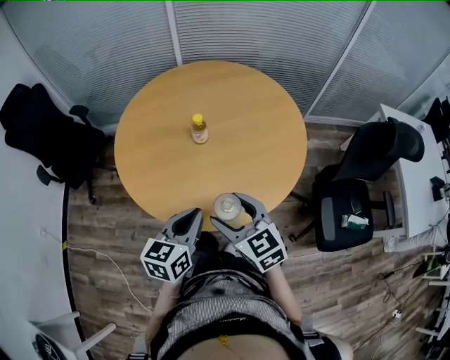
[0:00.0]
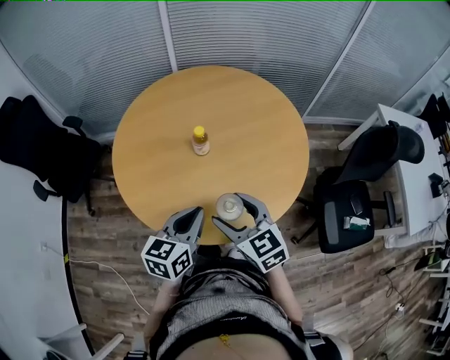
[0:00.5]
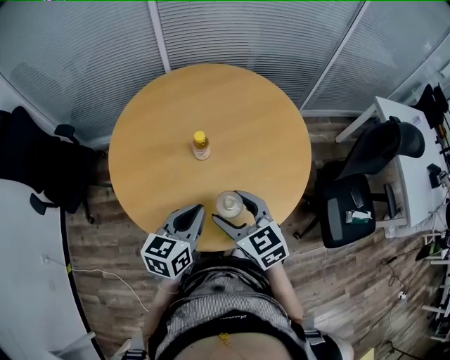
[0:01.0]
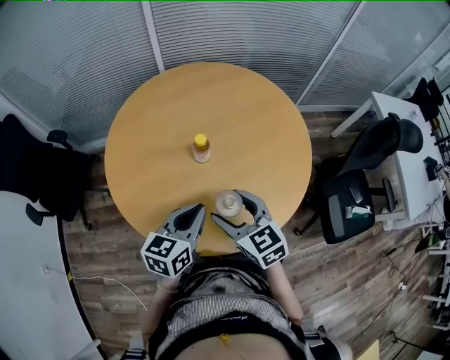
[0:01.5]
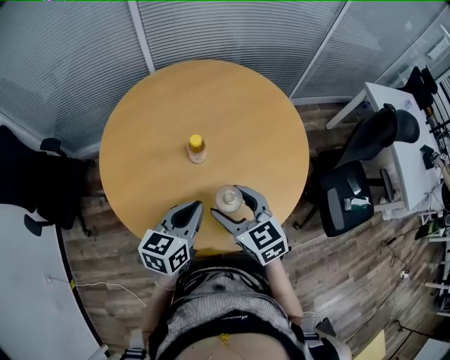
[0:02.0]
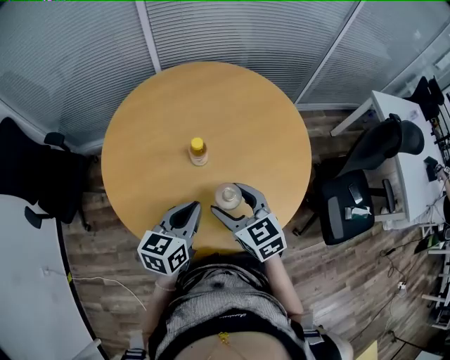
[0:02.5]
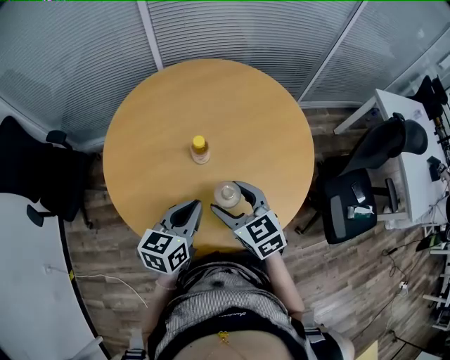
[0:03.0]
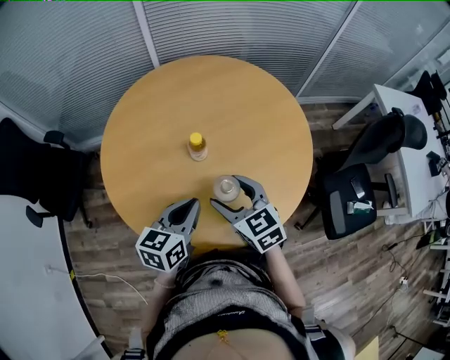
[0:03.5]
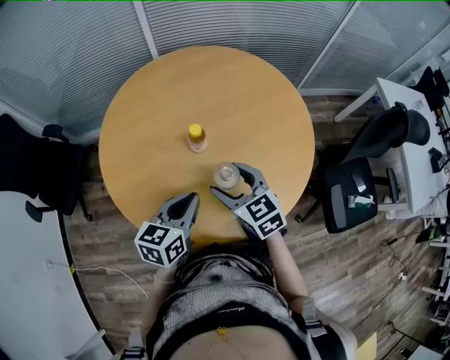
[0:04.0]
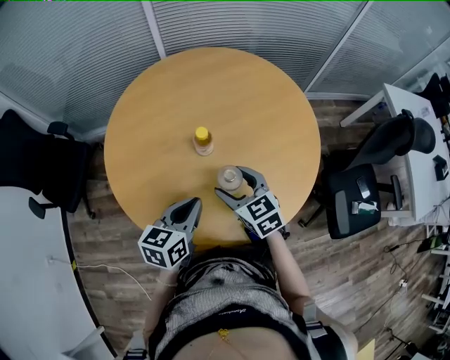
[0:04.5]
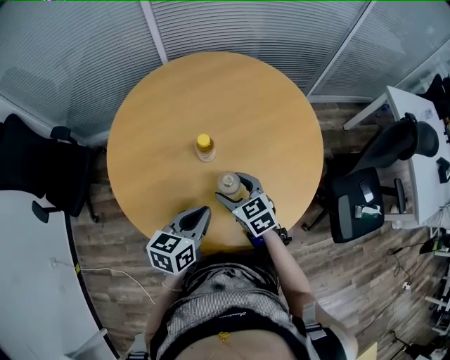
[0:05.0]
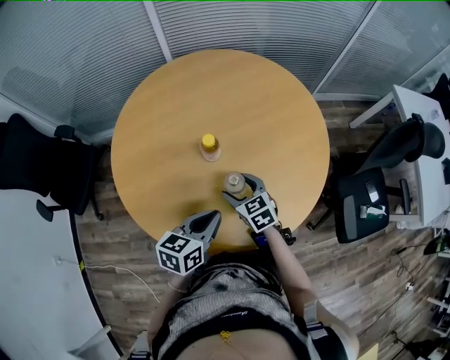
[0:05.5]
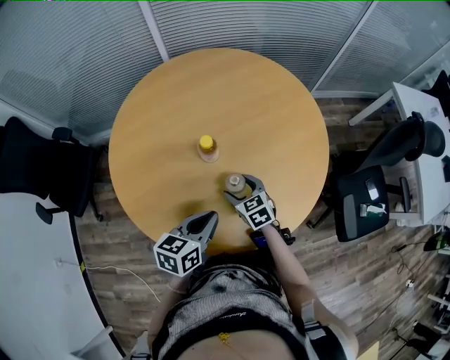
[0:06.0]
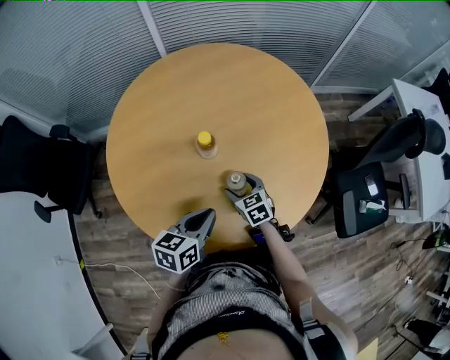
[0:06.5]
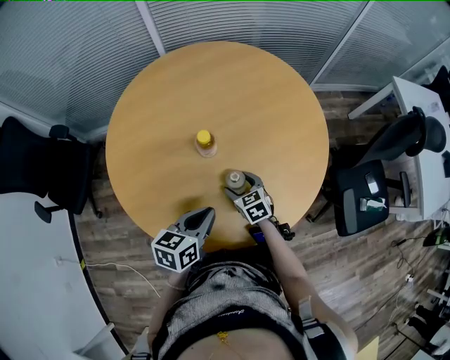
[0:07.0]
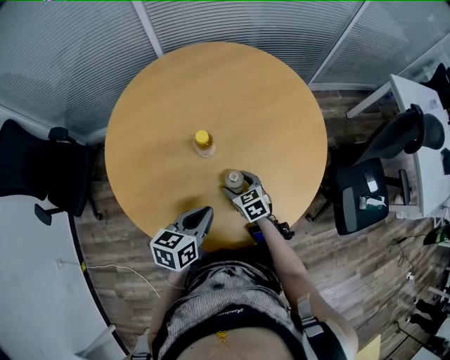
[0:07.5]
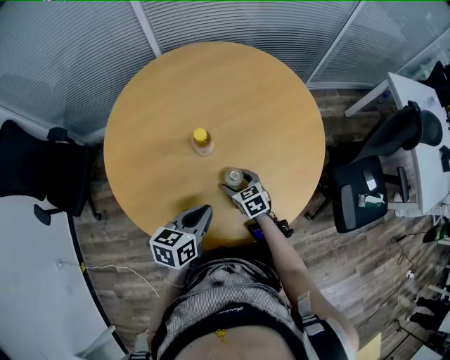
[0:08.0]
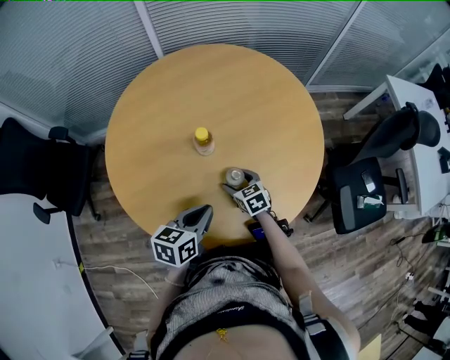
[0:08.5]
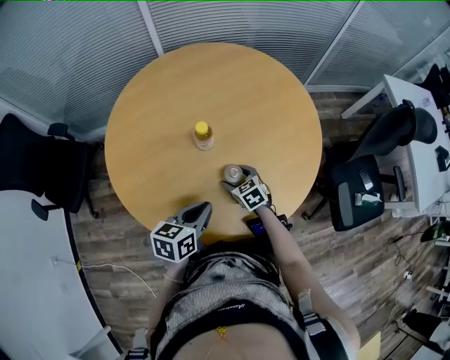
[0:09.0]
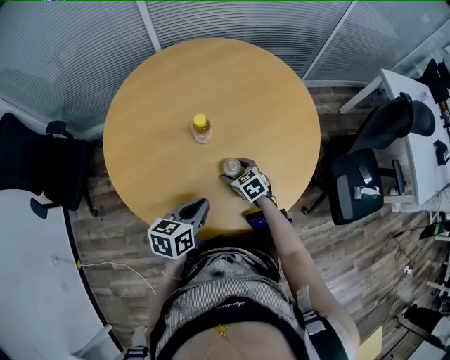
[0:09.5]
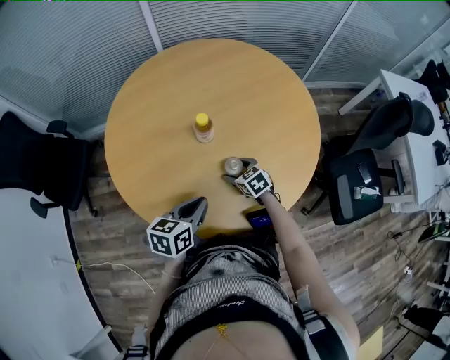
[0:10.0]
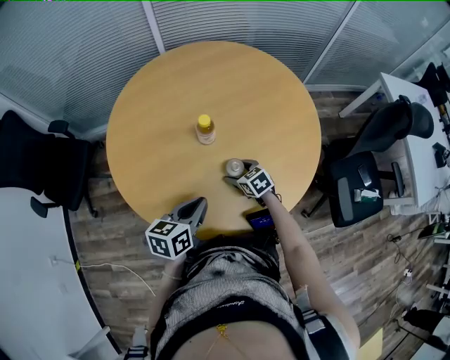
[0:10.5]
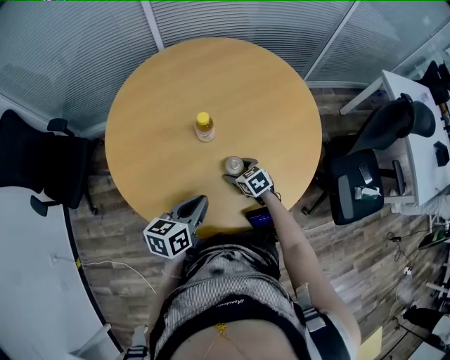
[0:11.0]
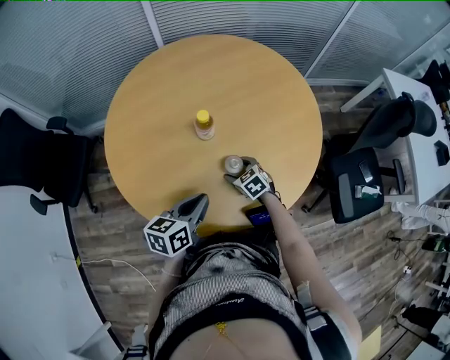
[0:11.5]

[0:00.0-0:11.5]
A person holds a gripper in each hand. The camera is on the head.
0:00.0 to 0:02.0: The right gripper is displaced forward and to the left by some 15 cm. The left gripper moves forward, some 15 cm.
0:02.0 to 0:04.0: The right gripper shifts by approximately 5 cm.
0:04.0 to 0:06.0: The right gripper moves downward, approximately 15 cm.
0:06.0 to 0:09.5: There are only small adjustments of the grippers.
0:09.5 to 0:11.5: The grippers make only small movements.

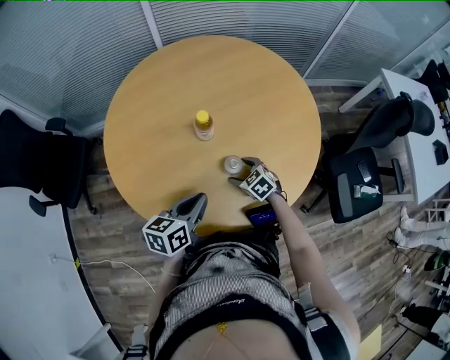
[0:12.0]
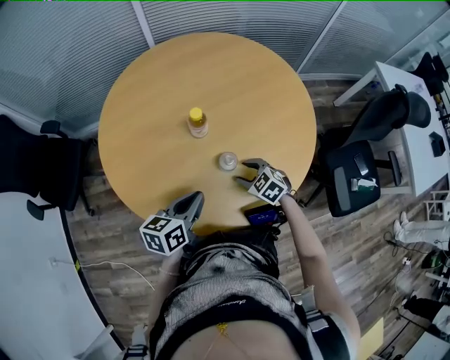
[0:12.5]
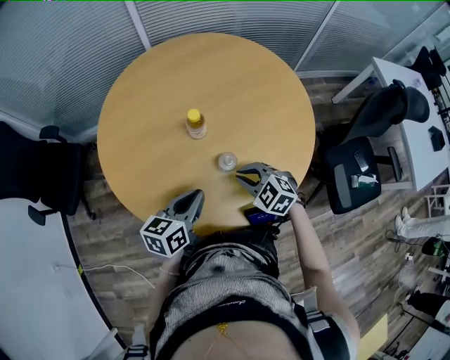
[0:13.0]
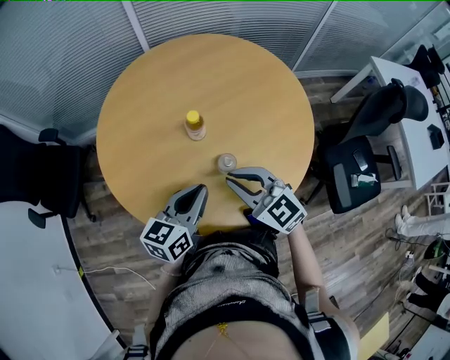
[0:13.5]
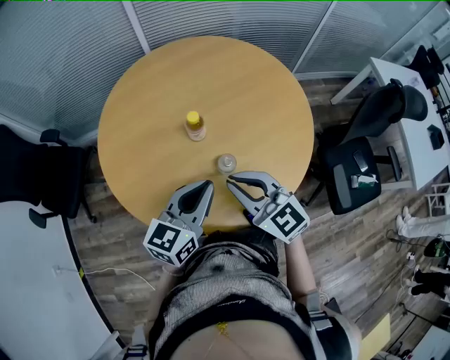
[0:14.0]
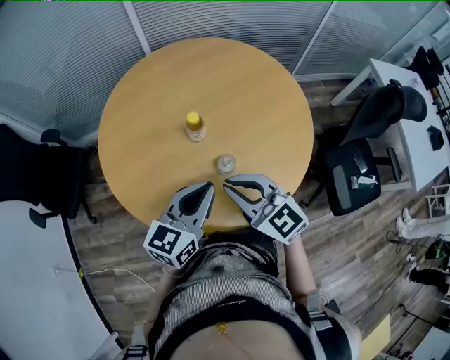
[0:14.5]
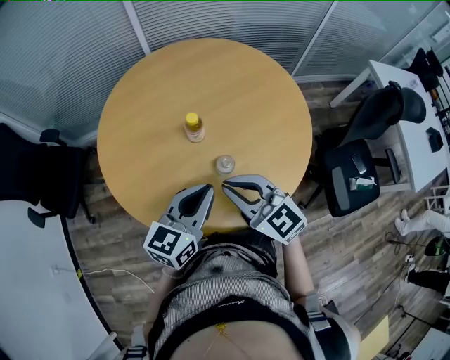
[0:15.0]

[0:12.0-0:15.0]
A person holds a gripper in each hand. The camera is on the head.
0:12.0 to 0:13.5: The right gripper heads upward, covering roughly 25 cm, tips its fingers upward by some 30 degrees, and closes its fingers, while the left gripper moves upward, some 5 cm.
0:13.5 to 0:15.0: The left gripper ends up approximately 5 cm from where it was.

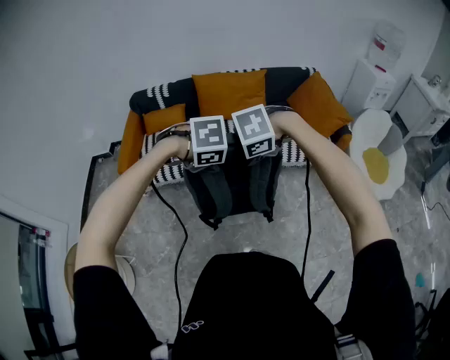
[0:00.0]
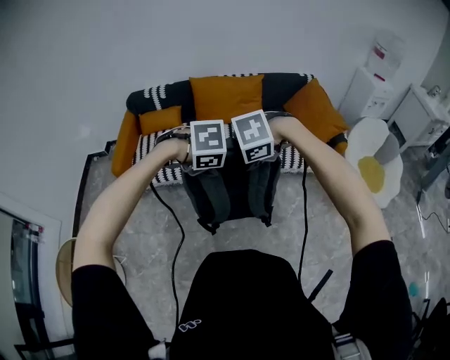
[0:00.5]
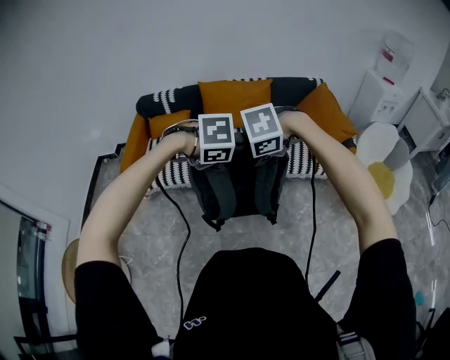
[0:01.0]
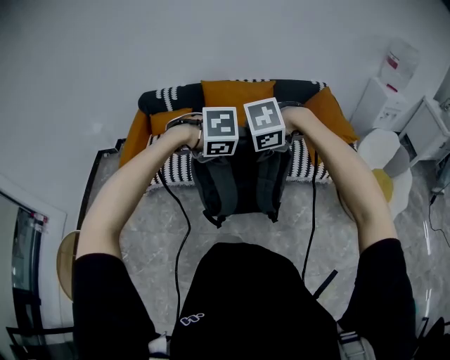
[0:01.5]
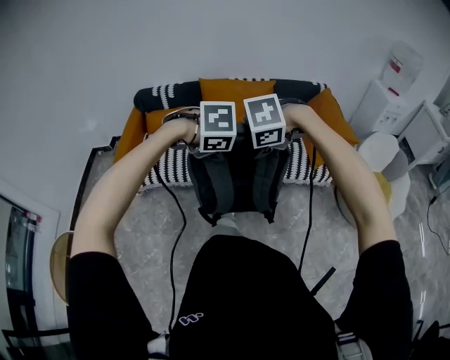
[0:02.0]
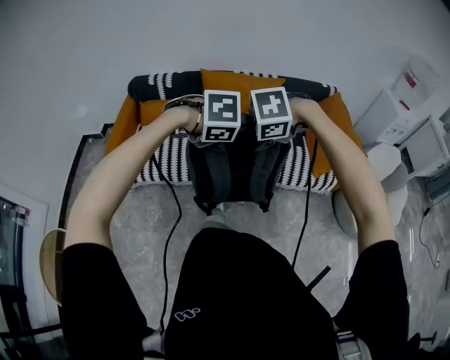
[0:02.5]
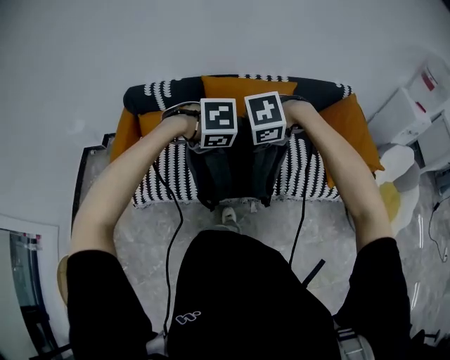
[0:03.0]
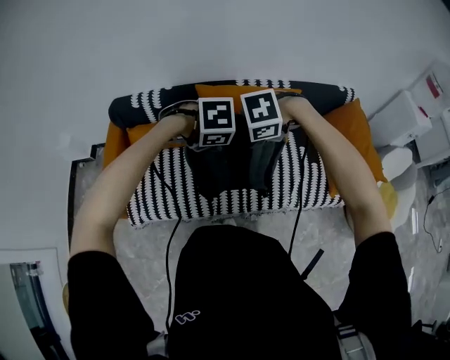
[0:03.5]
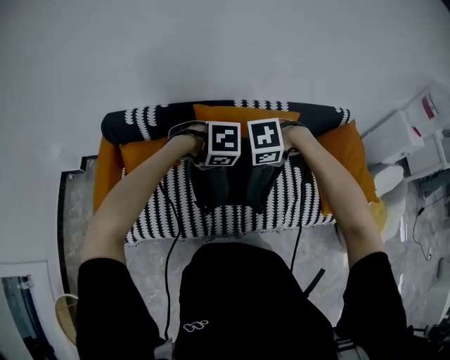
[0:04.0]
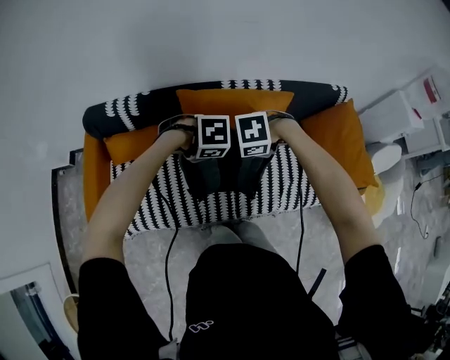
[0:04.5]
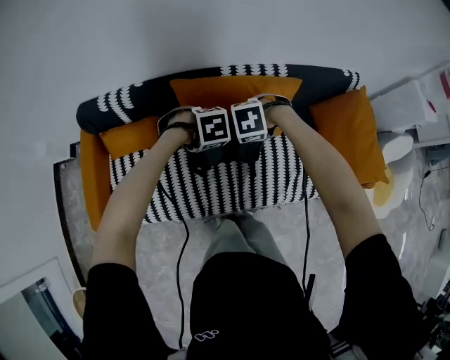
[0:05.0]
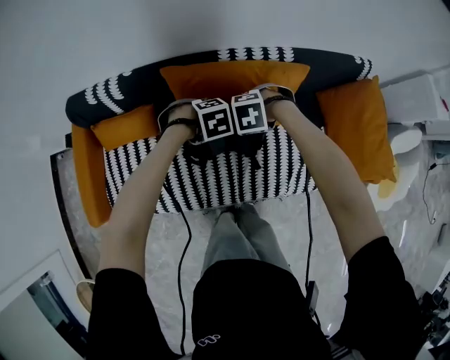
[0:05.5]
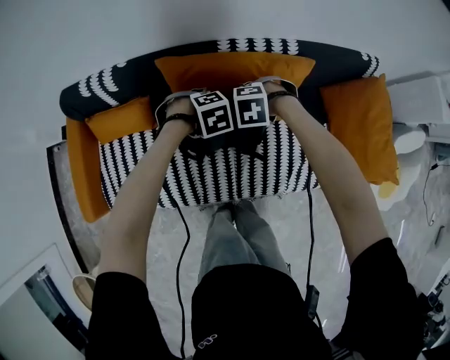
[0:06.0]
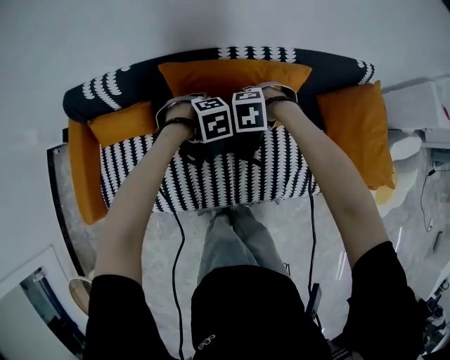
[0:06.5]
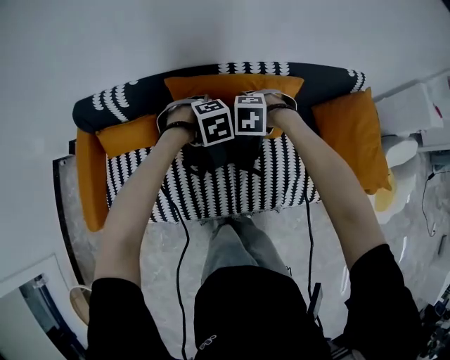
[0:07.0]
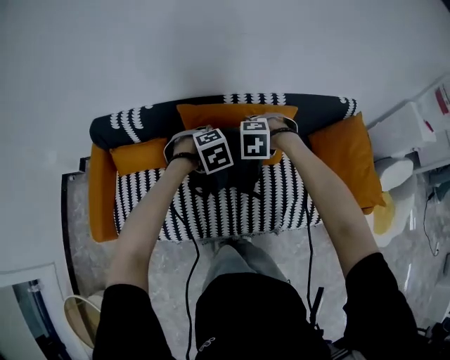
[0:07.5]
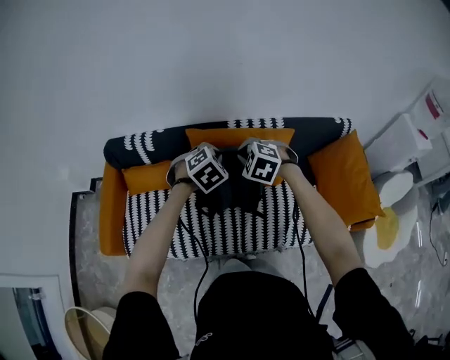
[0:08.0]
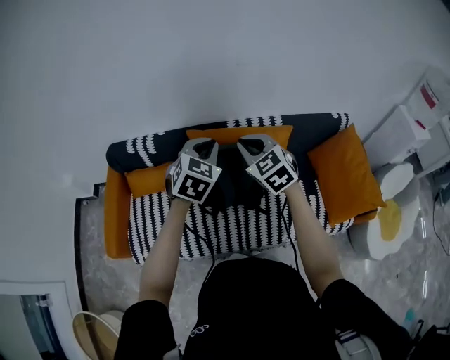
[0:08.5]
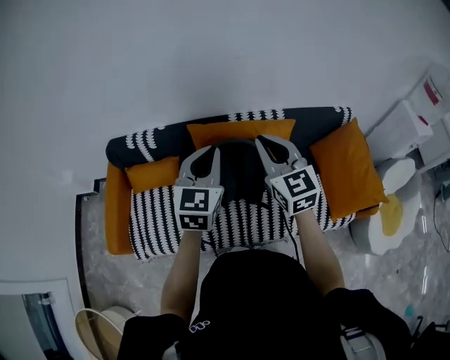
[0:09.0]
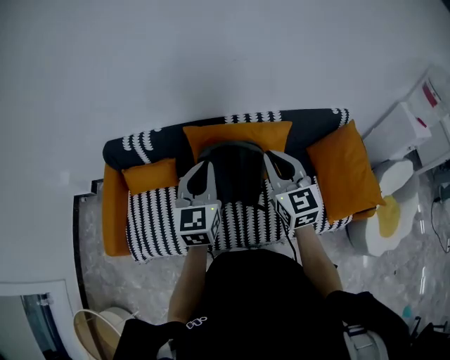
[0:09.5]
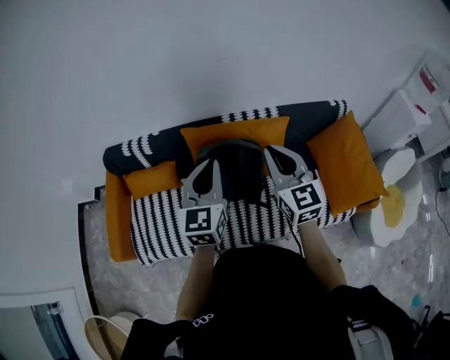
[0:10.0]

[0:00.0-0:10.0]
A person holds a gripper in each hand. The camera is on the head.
0:00.0 to 0:02.0: The left gripper moves roughly 10 cm. Meanwhile the right gripper ends up roughly 10 cm from where it was.
0:02.0 to 0:04.0: The pair of grippers is taken about 50 cm.
0:04.0 to 0:06.0: Both grippers move downward, approximately 20 cm.
0:06.0 to 0:08.0: The two grippers go about 20 cm upward. The right gripper swivels some 30 degrees, and closes up, while the left gripper changes its angle by approximately 40 degrees, and closes.
0:08.0 to 0:10.0: The left gripper shifts about 15 cm upward and backward, and tips its fingers upward by approximately 50 degrees. Meanwhile the right gripper is displaced upward, to the right and backward by about 20 cm, and tilts its fingers roughly 50 degrees upward.

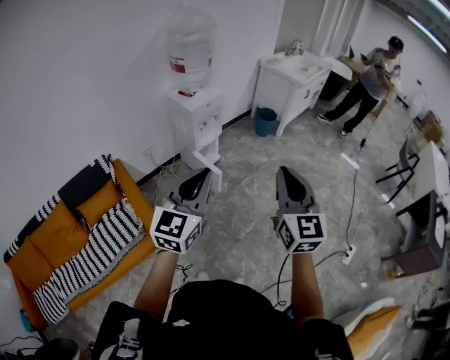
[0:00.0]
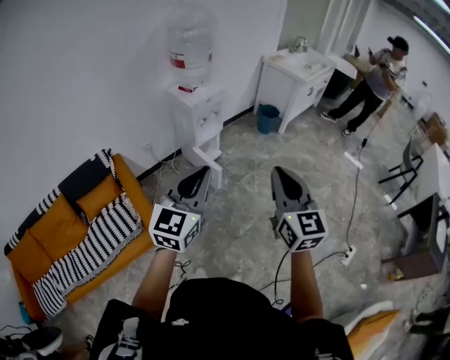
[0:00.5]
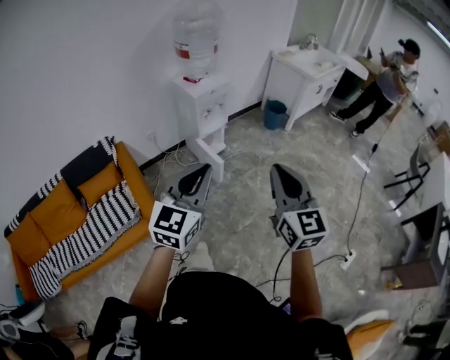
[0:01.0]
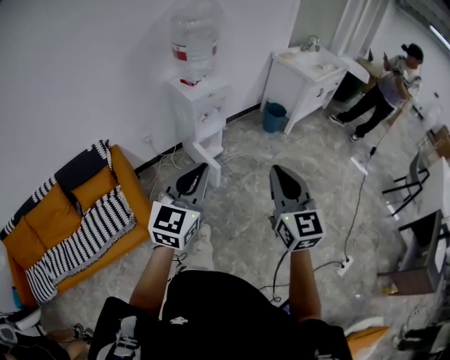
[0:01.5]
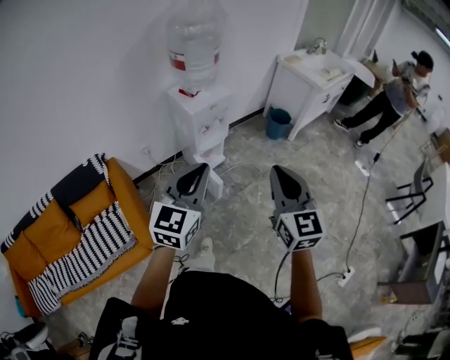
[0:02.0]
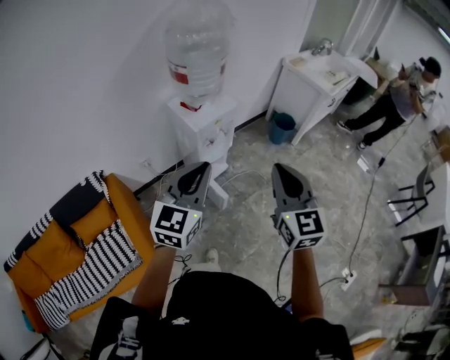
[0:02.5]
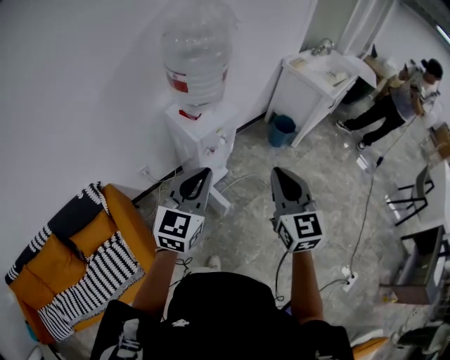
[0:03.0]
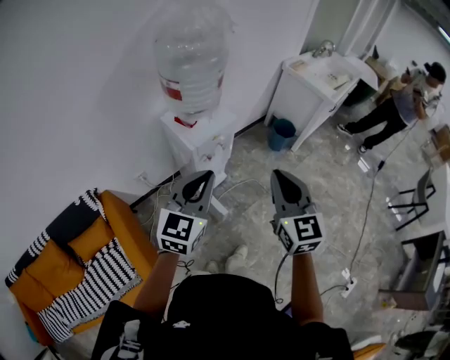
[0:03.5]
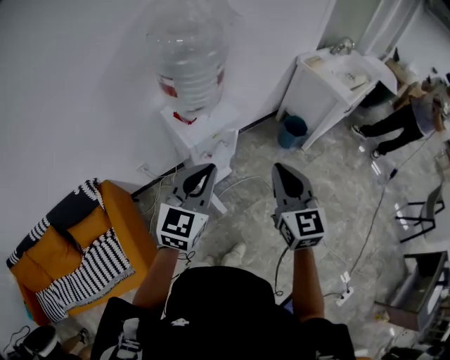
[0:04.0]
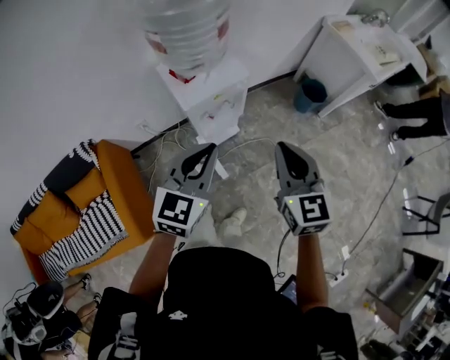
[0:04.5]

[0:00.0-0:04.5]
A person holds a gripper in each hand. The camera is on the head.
0:00.0 to 0:02.0: Both grippers travel together forward, about 20 cm.
0:02.0 to 0:04.5: The two grippers go about 35 cm forward.
